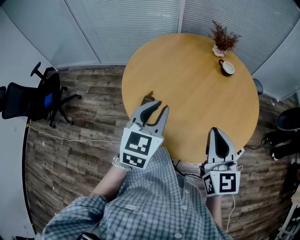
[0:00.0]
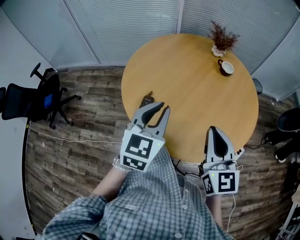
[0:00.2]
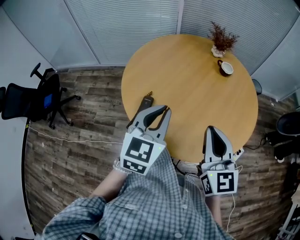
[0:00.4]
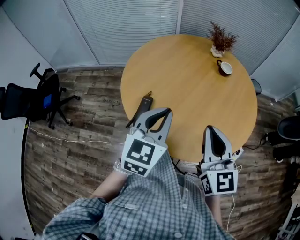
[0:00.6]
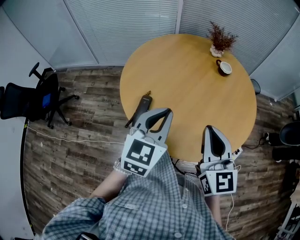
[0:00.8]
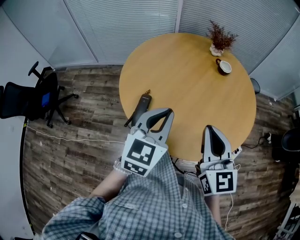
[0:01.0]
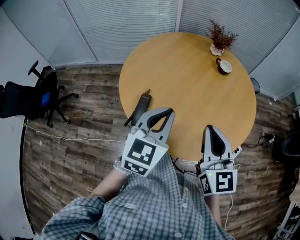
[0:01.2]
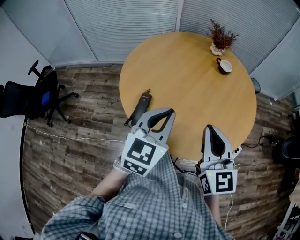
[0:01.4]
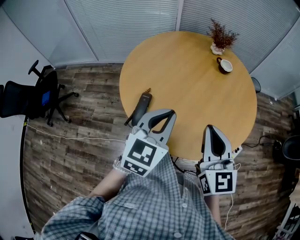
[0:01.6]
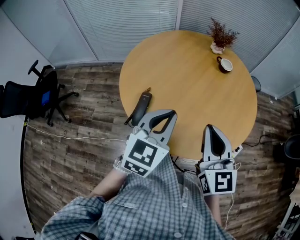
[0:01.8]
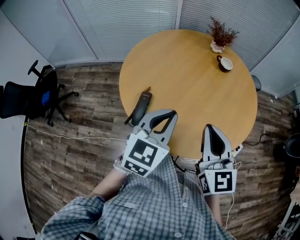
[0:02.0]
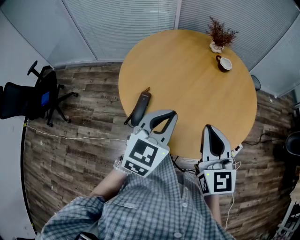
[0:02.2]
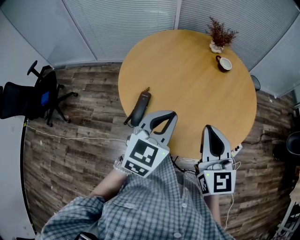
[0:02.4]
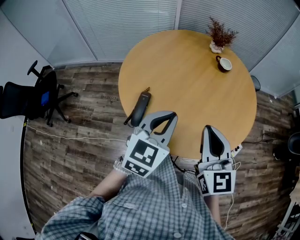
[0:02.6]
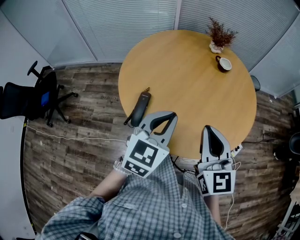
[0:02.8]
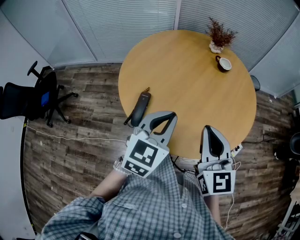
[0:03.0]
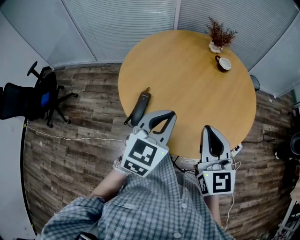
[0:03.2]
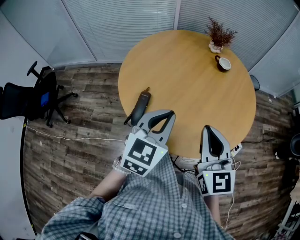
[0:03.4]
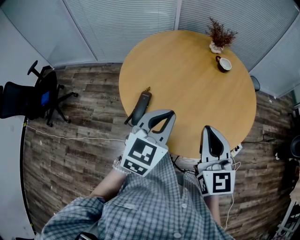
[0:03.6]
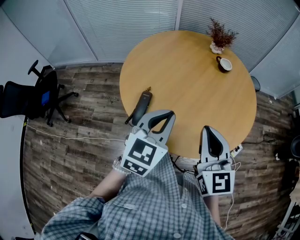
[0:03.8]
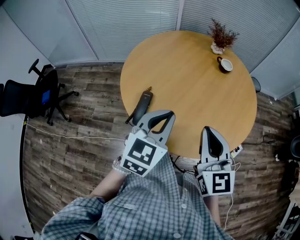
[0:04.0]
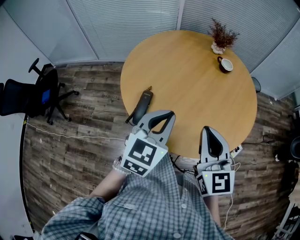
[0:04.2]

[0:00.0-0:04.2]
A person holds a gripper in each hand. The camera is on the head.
0:00.0 to 0:01.4: The grippers move only a little.
0:01.4 to 0:04.2: There are only small adjustments of the grippers.

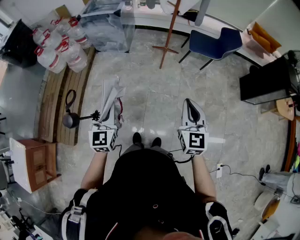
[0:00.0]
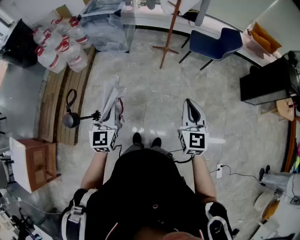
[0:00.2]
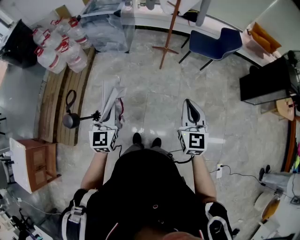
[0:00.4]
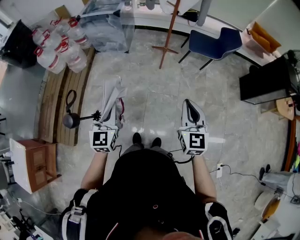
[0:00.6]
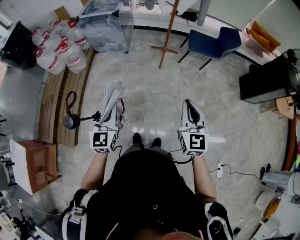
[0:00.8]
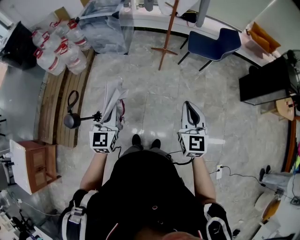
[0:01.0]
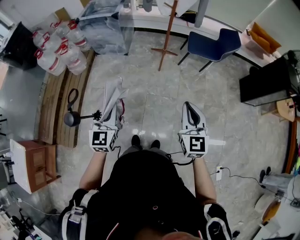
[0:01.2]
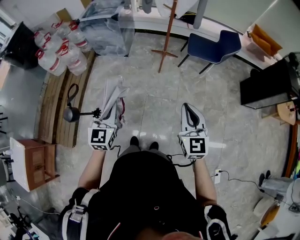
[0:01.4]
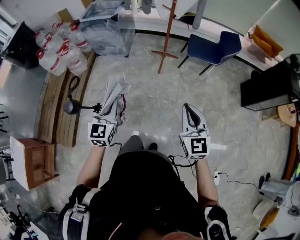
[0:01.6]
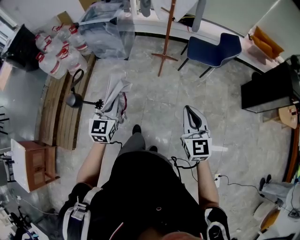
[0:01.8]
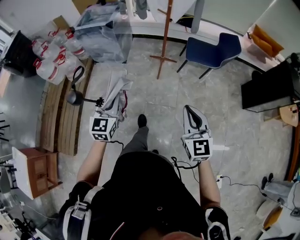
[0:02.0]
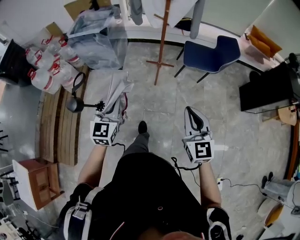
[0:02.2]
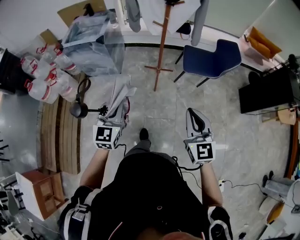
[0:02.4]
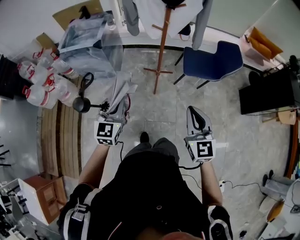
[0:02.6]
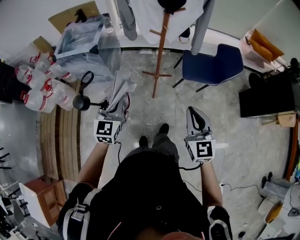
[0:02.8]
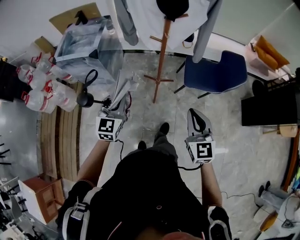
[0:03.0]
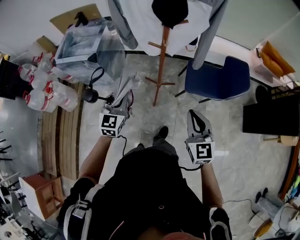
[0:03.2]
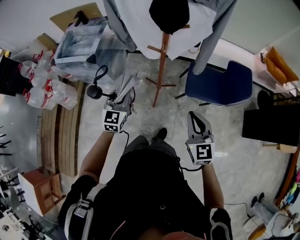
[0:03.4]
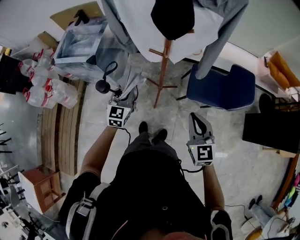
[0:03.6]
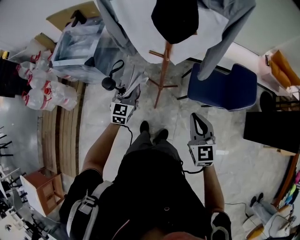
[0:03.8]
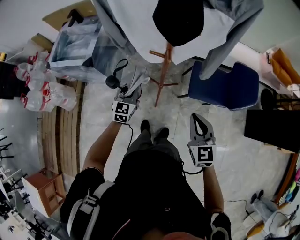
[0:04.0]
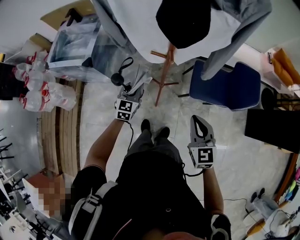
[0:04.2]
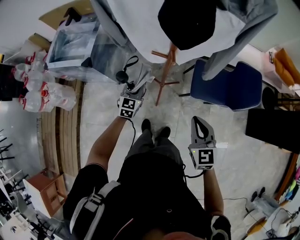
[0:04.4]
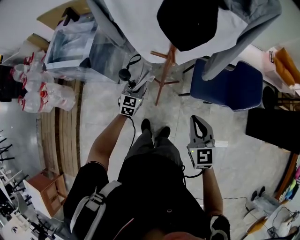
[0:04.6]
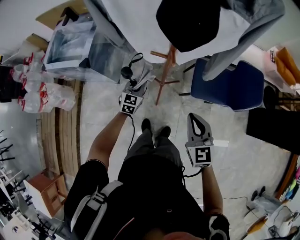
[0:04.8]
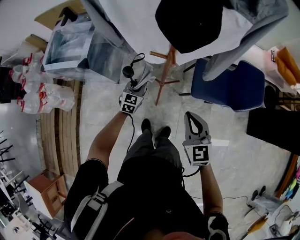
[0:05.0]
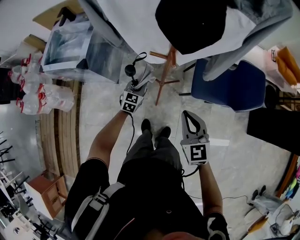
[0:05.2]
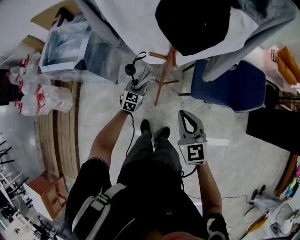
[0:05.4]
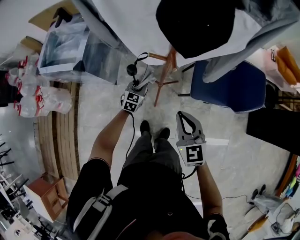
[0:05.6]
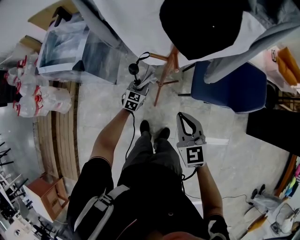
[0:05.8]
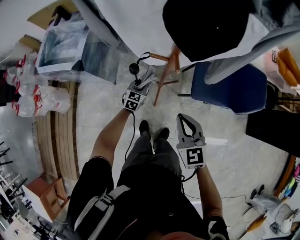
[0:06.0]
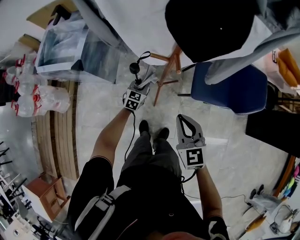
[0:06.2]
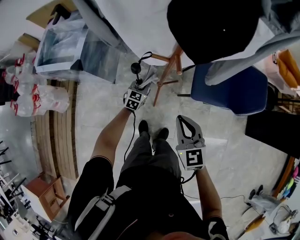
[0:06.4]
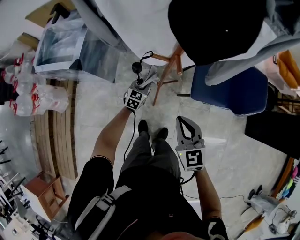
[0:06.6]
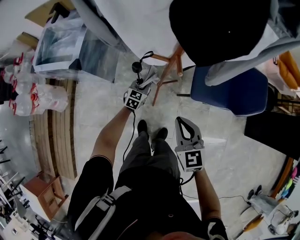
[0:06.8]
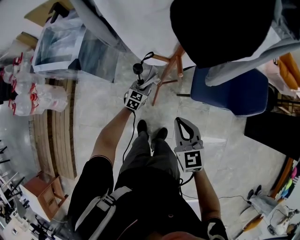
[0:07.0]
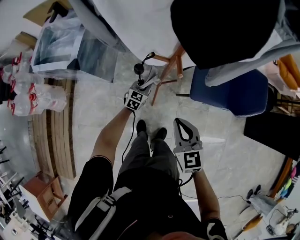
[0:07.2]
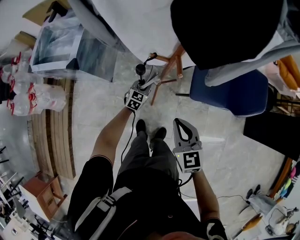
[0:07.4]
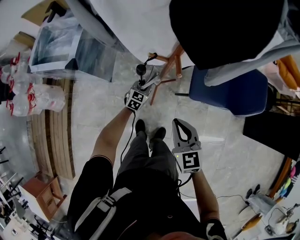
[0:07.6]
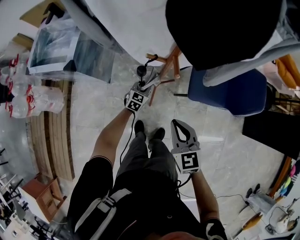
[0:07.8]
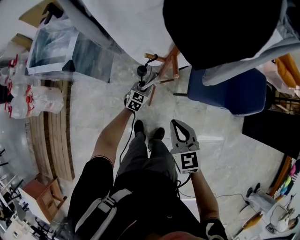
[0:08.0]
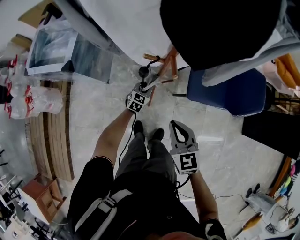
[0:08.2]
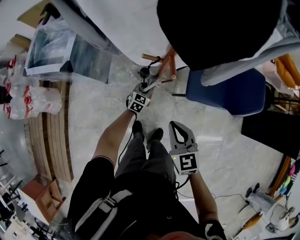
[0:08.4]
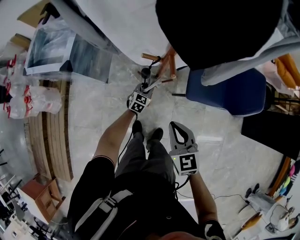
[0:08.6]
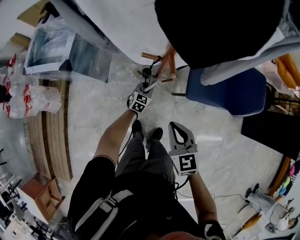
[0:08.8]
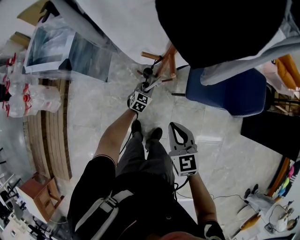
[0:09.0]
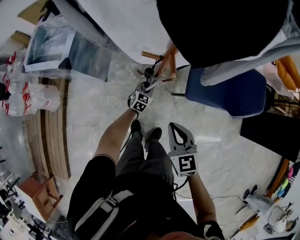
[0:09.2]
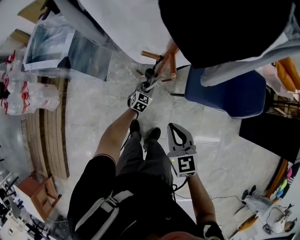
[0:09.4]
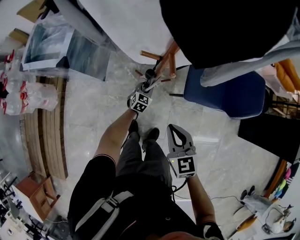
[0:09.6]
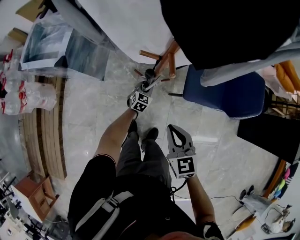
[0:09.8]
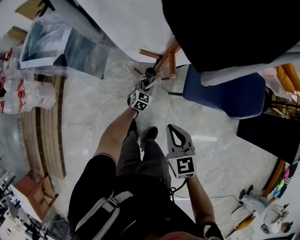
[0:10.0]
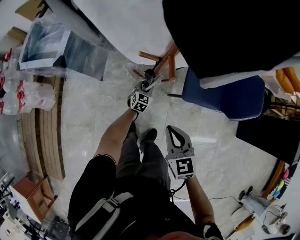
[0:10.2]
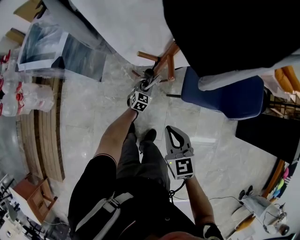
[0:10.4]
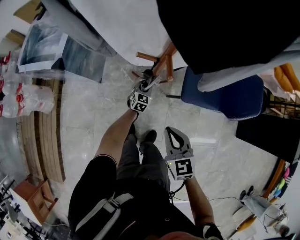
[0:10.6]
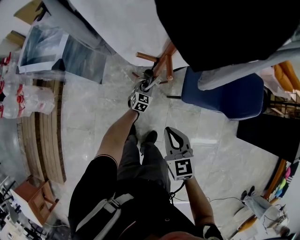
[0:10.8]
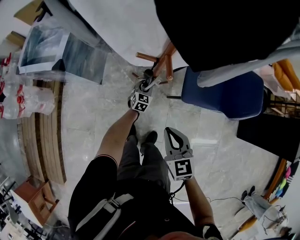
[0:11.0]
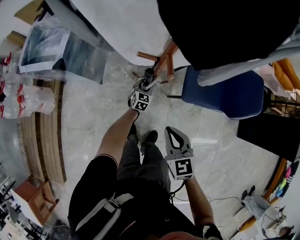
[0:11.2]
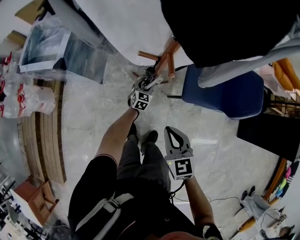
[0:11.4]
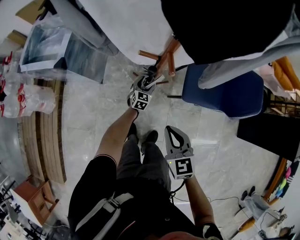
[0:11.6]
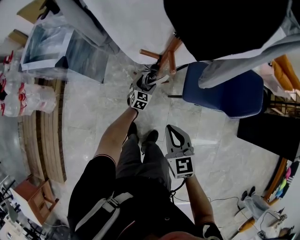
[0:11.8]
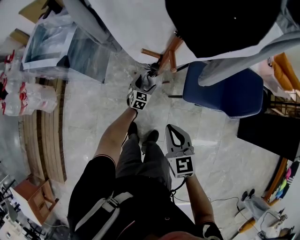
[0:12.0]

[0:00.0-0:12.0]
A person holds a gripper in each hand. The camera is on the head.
0:00.0 to 0:01.6: Both grippers move to the right, approximately 5 cm.
0:01.6 to 0:03.0: Both grippers are carried forward, some 40 cm.
0:03.0 to 0:04.4: The right gripper heads forward and downward, covering approximately 20 cm. The left gripper is displaced forward and downward by roughly 35 cm.
0:04.4 to 0:06.0: The right gripper travels to the left and forward by approximately 10 cm. Meanwhile the left gripper goes some 15 cm downward and forward.
0:06.0 to 0:07.6: The left gripper shifts by approximately 5 cm.
0:07.6 to 0:09.0: The left gripper changes place by roughly 5 cm.
0:09.0 to 0:10.4: There are only small adjustments of the grippers.
0:10.4 to 0:12.0: The left gripper opens its fingers.

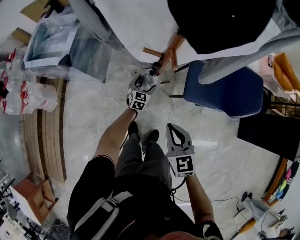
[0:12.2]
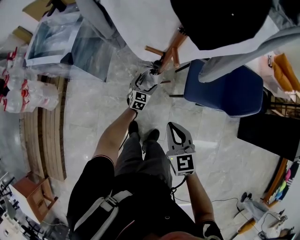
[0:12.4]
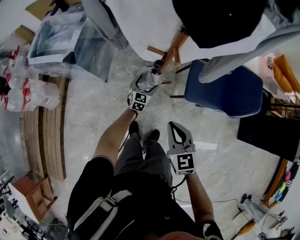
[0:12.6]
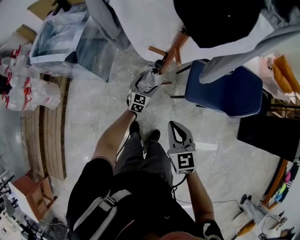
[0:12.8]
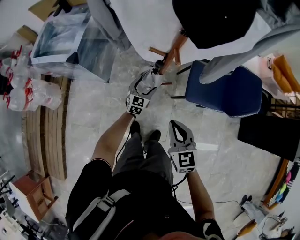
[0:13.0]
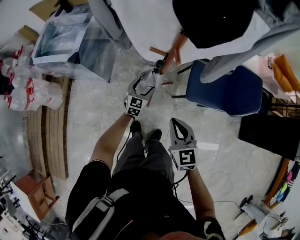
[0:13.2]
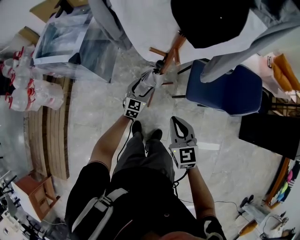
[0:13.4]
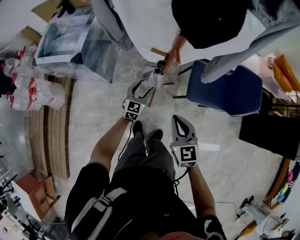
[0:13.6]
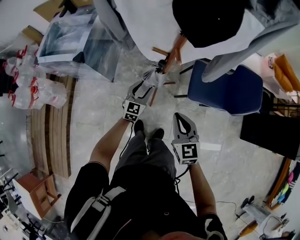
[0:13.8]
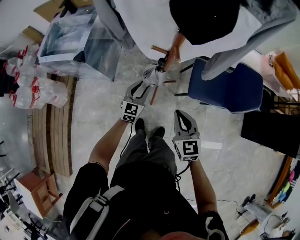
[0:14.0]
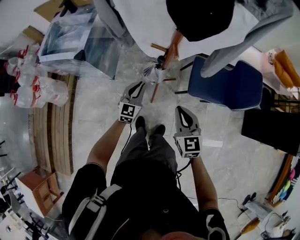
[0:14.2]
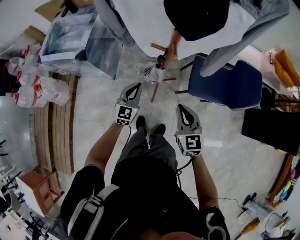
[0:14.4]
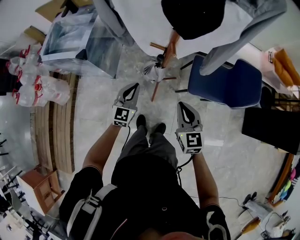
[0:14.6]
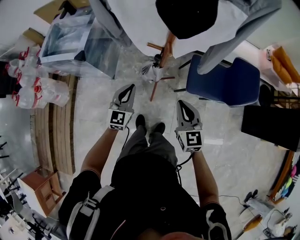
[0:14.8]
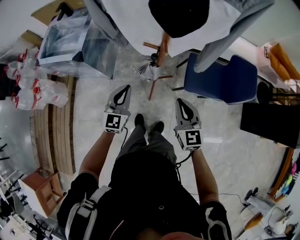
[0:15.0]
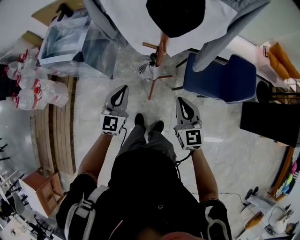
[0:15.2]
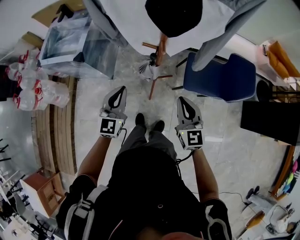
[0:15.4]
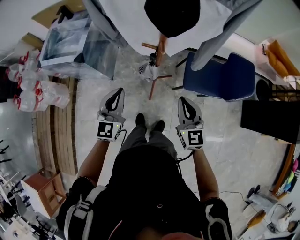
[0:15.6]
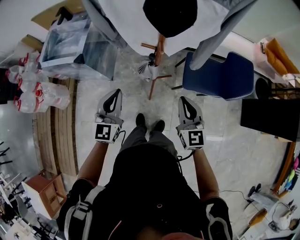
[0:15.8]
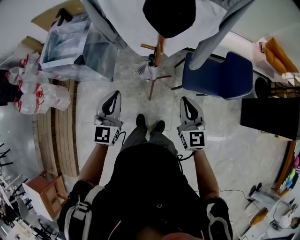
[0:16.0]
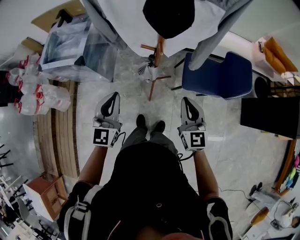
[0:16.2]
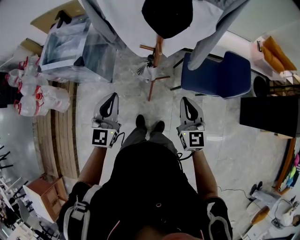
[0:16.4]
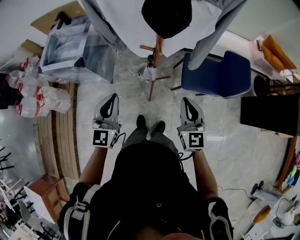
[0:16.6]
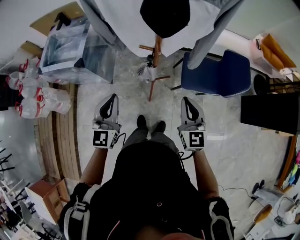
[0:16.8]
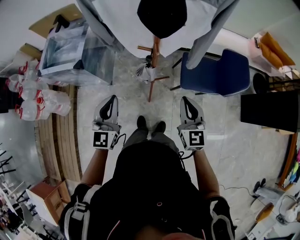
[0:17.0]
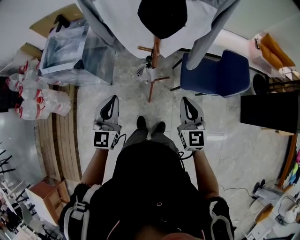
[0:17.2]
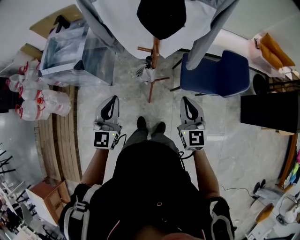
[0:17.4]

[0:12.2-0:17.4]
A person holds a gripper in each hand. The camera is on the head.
0:12.2 to 0:14.0: The left gripper goes some 20 cm upward and backward, and closes.
0:14.0 to 0:15.6: The left gripper travels upward and backward by approximately 25 cm; the right gripper heads upward, covering some 10 cm.
0:15.6 to 0:17.4: The left gripper moves approximately 5 cm.

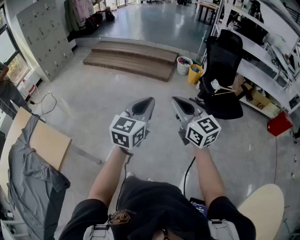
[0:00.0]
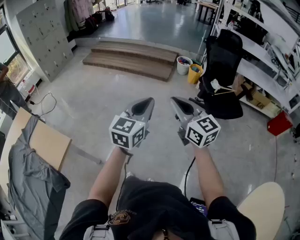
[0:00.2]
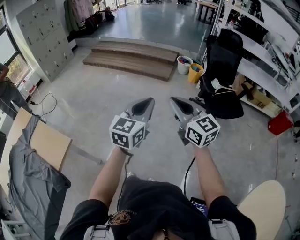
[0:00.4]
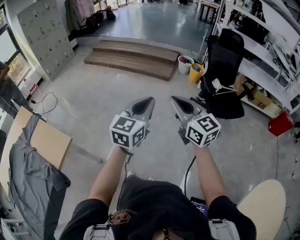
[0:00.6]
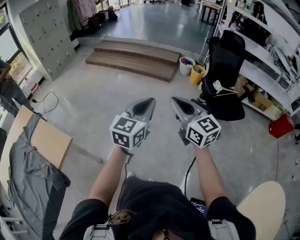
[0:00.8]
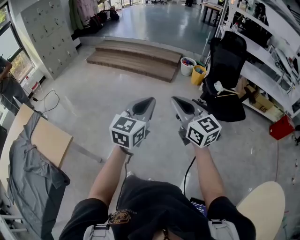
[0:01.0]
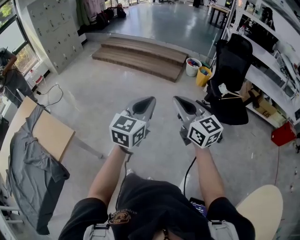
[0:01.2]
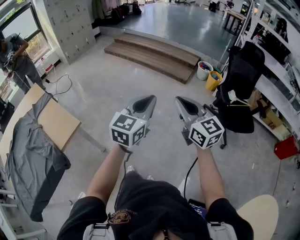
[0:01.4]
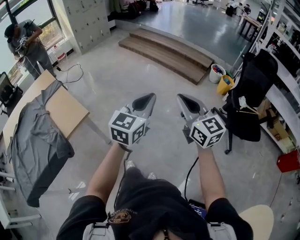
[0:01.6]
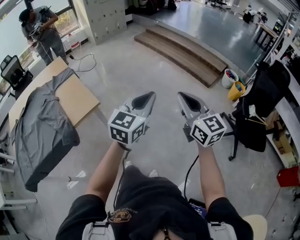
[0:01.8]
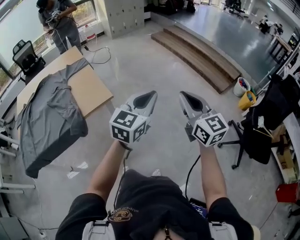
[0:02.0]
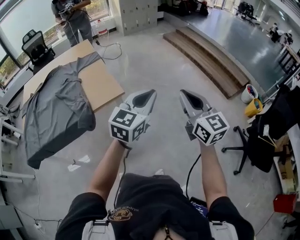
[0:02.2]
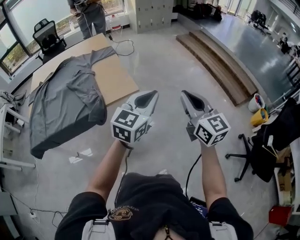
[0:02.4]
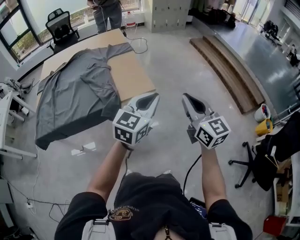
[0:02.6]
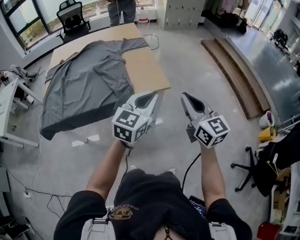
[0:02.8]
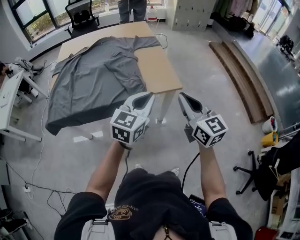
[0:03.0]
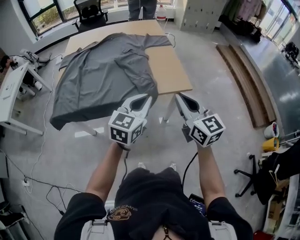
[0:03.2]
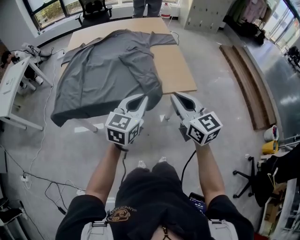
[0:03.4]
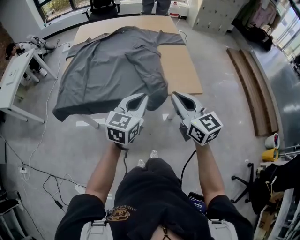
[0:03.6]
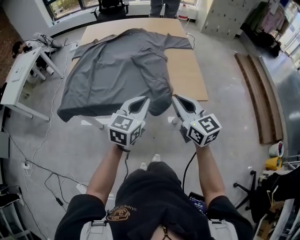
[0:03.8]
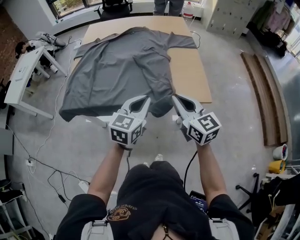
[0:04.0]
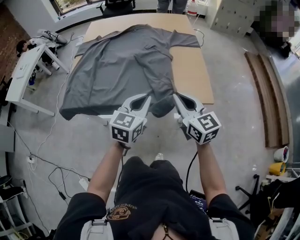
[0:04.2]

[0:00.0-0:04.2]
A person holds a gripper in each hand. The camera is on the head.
0:00.0 to 0:01.4: The left gripper goes roughly 5 cm to the left.
0:01.4 to 0:02.8: The two grippers travel together, roughly 50 cm. The left gripper turns by roughly 40 degrees, while the right gripper changes its angle by some 40 degrees.
0:02.8 to 0:04.2: Both grippers move to the left and forward, roughly 25 cm. The left gripper swivels roughly 20 degrees. The right gripper rotates some 20 degrees.
